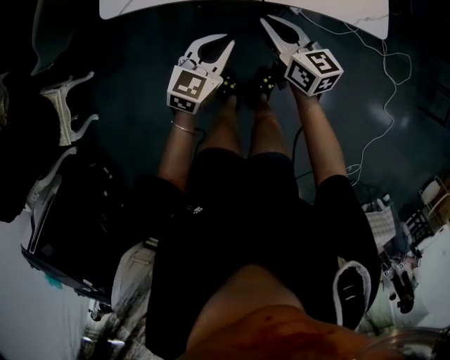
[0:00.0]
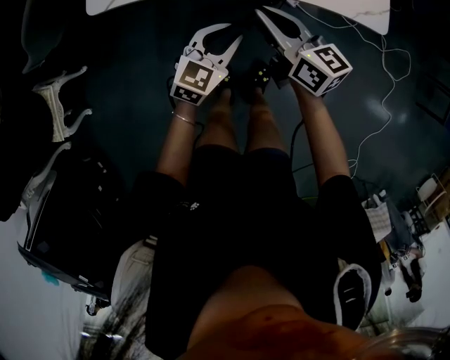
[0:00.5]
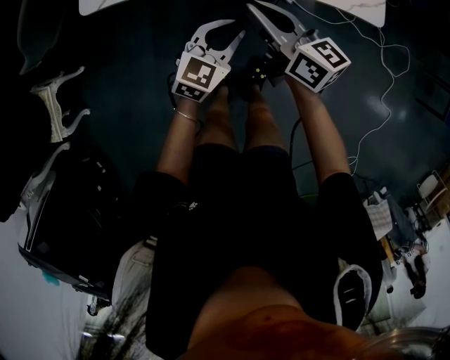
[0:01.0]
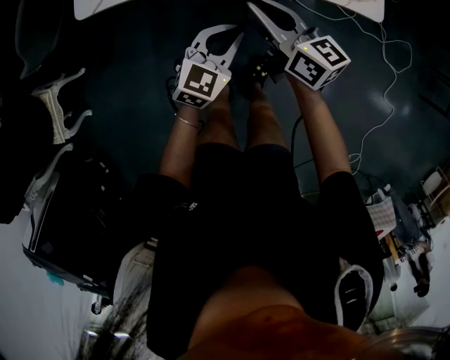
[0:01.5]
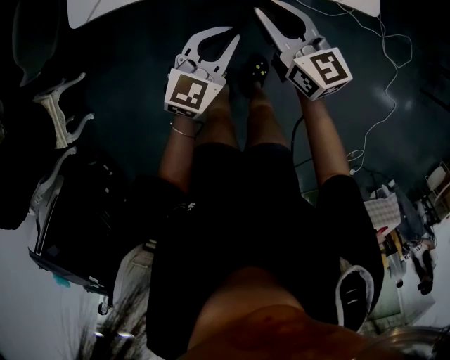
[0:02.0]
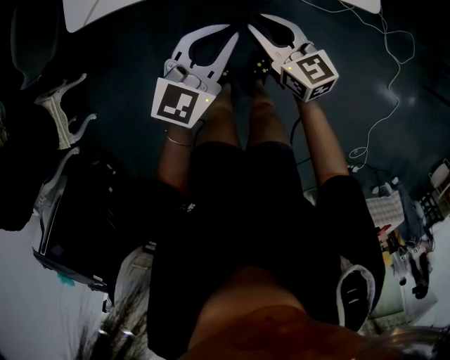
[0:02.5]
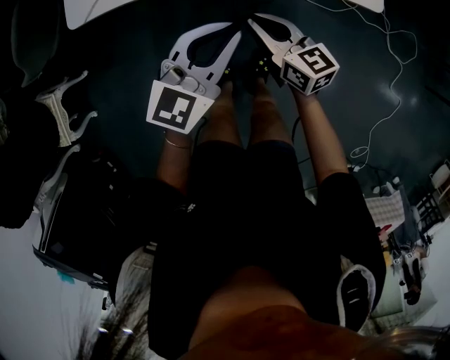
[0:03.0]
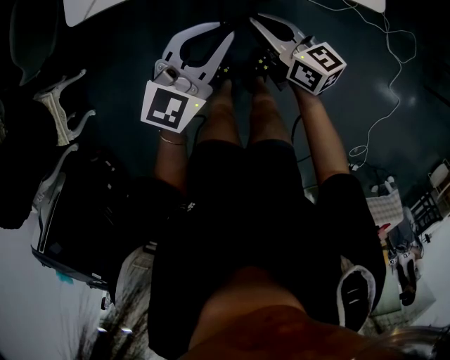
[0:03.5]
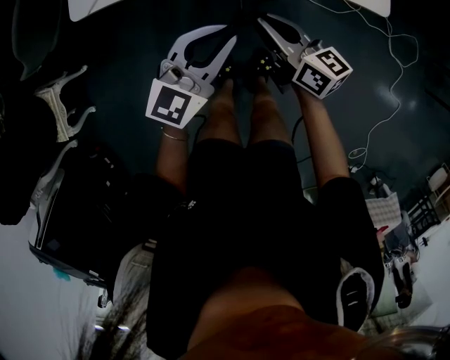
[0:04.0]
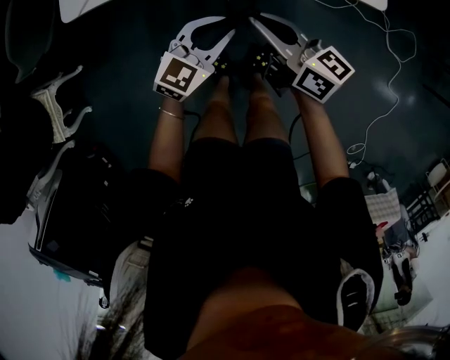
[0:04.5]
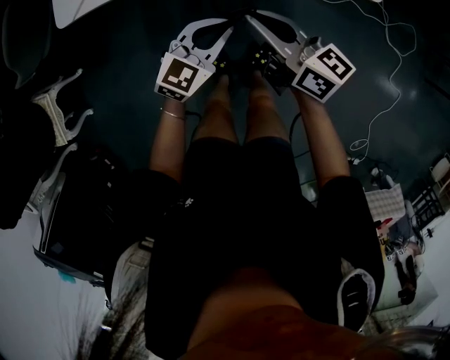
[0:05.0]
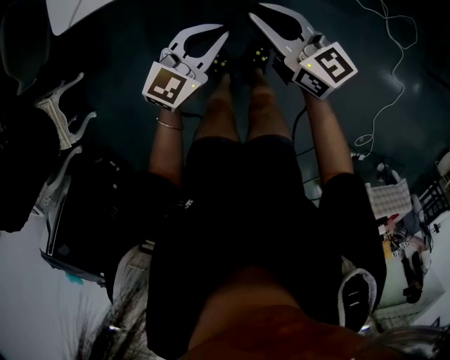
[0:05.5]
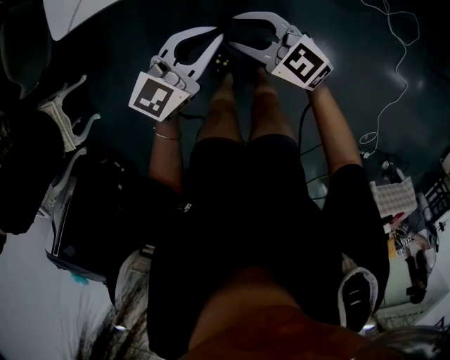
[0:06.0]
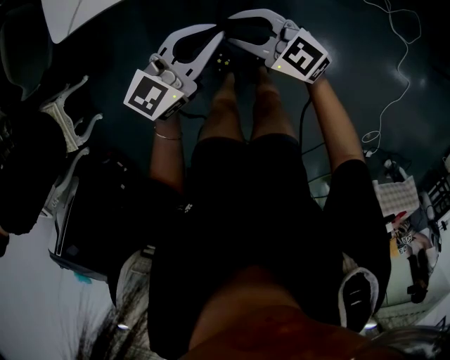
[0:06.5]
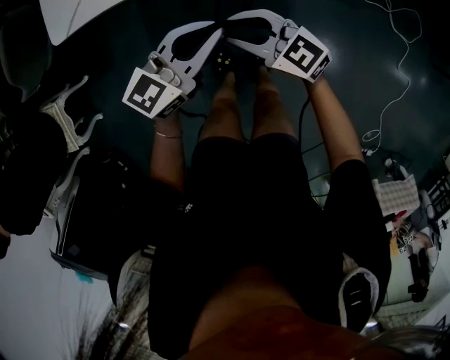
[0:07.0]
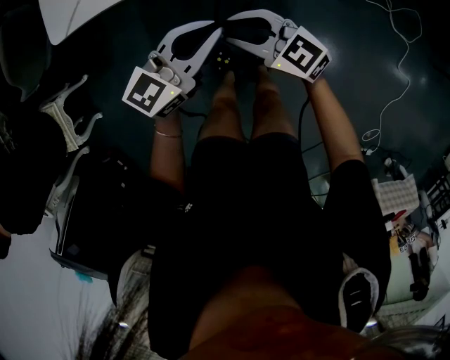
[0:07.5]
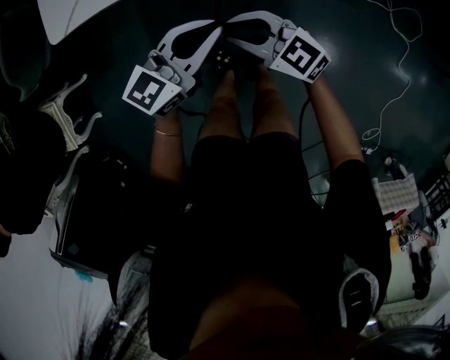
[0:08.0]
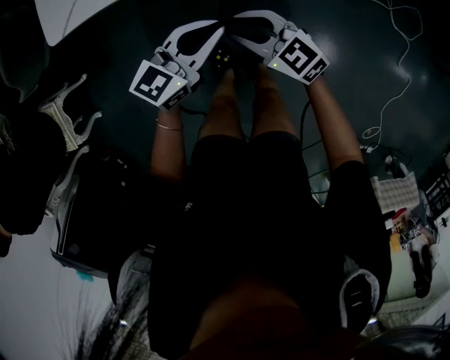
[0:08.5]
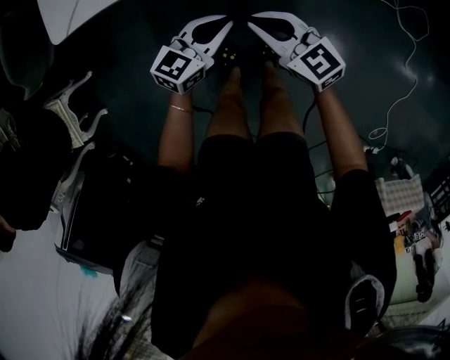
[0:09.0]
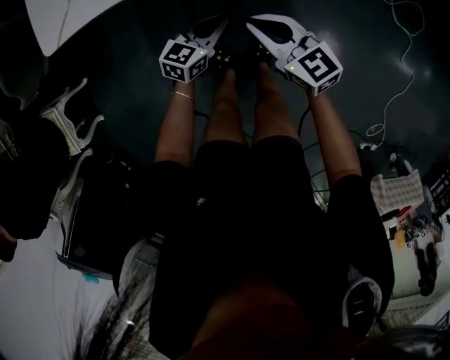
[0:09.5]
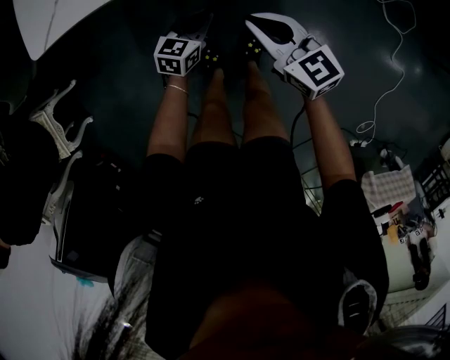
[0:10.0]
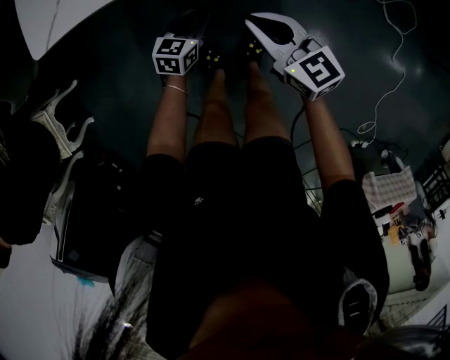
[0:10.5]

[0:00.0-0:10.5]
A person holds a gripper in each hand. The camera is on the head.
0:00.0 to 0:02.0: The left gripper shifts approximately 5 cm to the right; the right gripper changes place by approximately 5 cm.
0:02.0 to 0:04.0: The right gripper moves approximately 5 cm, and swivels approximately 20 degrees. The left gripper changes place by about 5 cm.
0:04.0 to 0:06.5: The right gripper travels backward by approximately 5 cm, turns by roughly 40 degrees, and opens its fingers, while the left gripper moves some 10 cm downward and comes back, and swivels approximately 20 degrees.
0:06.5 to 0:08.5: There are only small adjustments of the grippers.
0:08.5 to 0:10.5: The right gripper heads to the right, covering approximately 5 cm, and swivels approximately 30 degrees. Meanwhile the left gripper moves downward, roughly 20 cm, and swivels some 30 degrees.

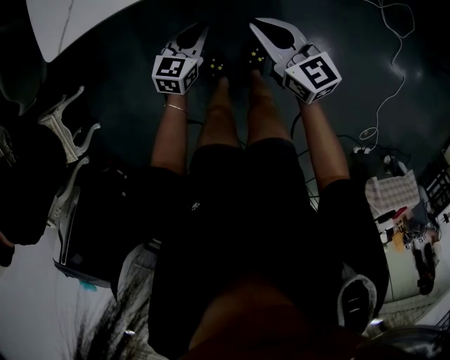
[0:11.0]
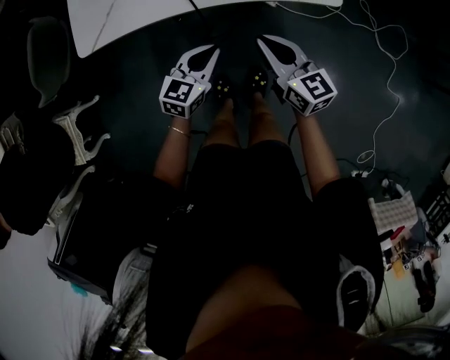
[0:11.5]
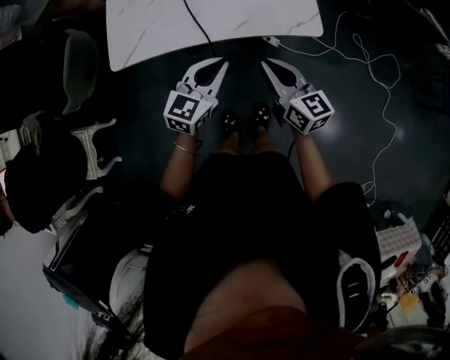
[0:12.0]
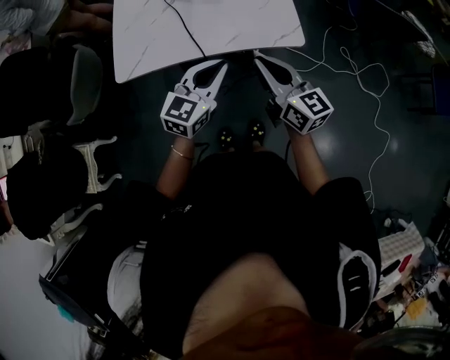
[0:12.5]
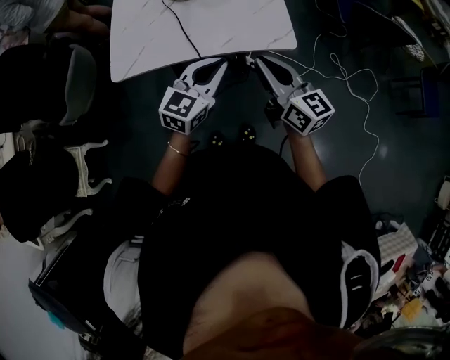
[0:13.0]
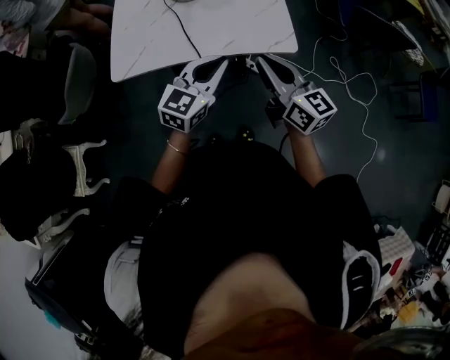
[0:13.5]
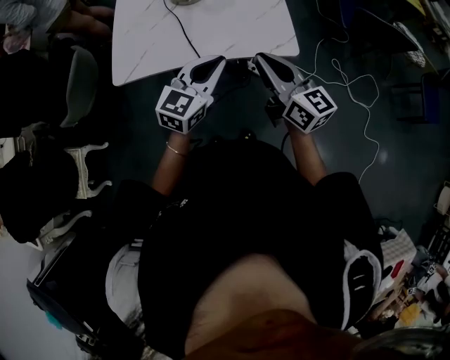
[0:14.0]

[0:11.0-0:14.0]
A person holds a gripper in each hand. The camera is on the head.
0:11.0 to 0:12.5: Both grippers travel together upward, roughly 30 cm. The left gripper rotates about 20 degrees.
0:12.5 to 0:14.0: The grippers make only small movements.

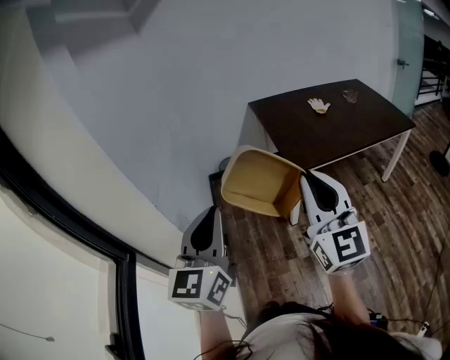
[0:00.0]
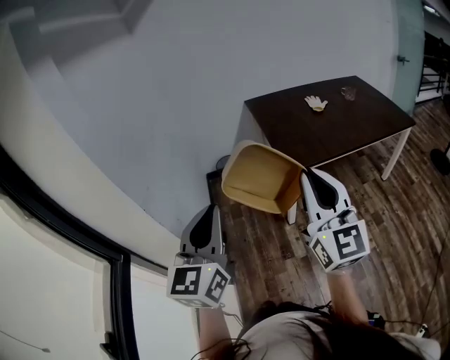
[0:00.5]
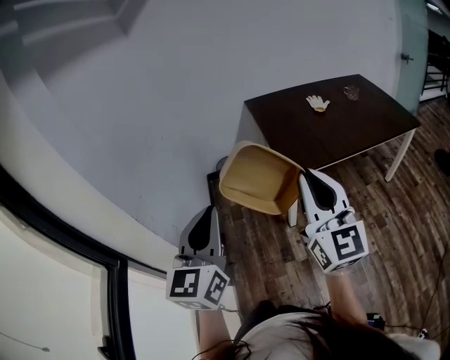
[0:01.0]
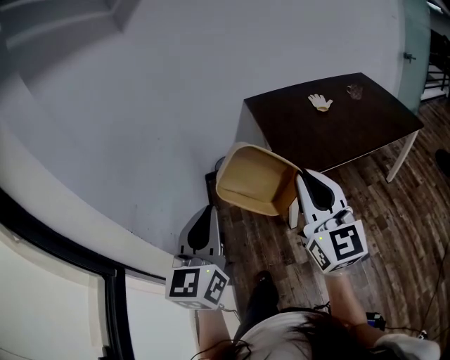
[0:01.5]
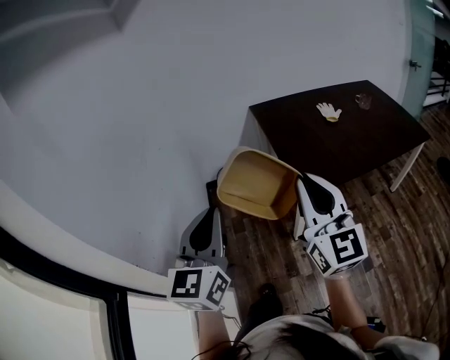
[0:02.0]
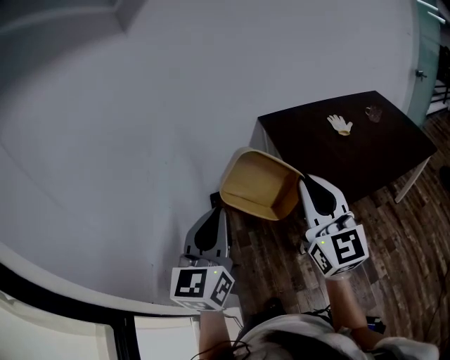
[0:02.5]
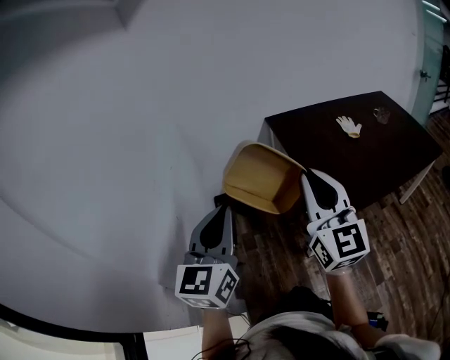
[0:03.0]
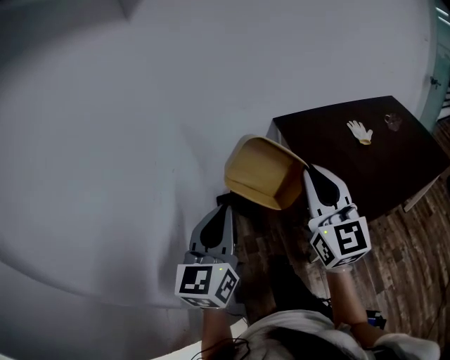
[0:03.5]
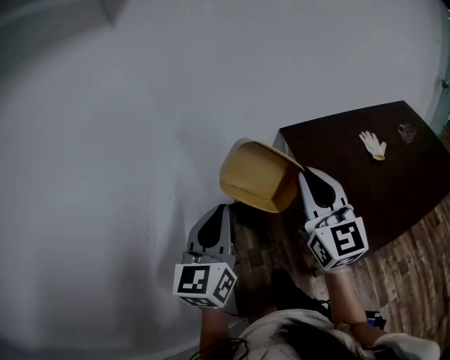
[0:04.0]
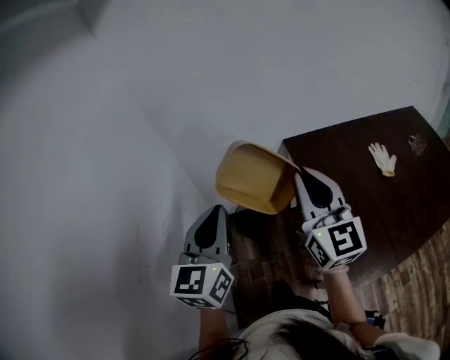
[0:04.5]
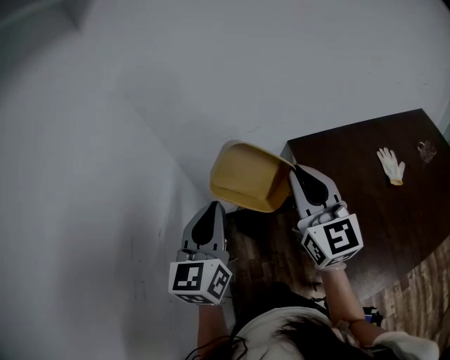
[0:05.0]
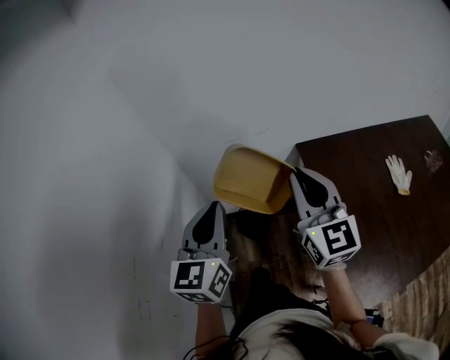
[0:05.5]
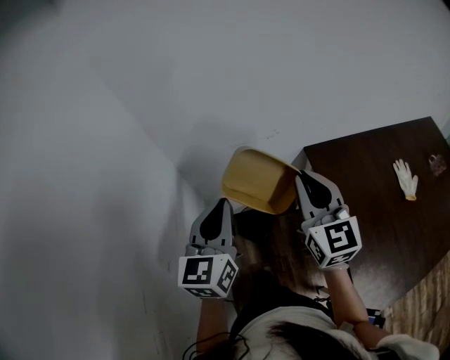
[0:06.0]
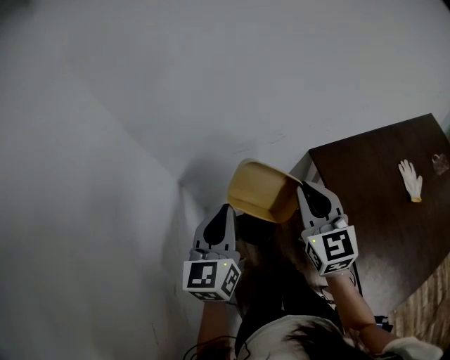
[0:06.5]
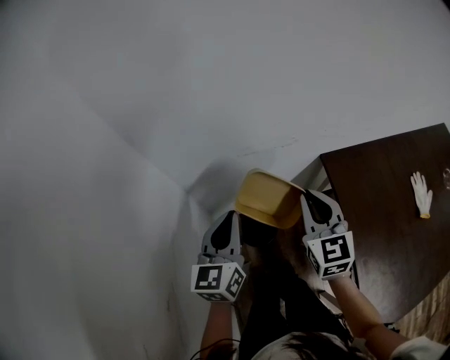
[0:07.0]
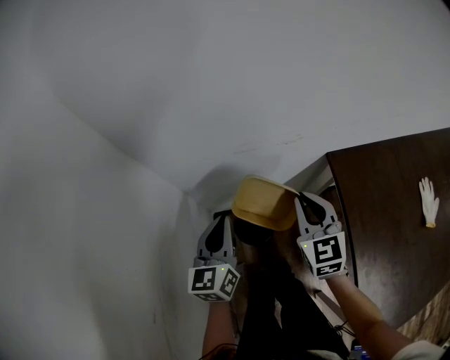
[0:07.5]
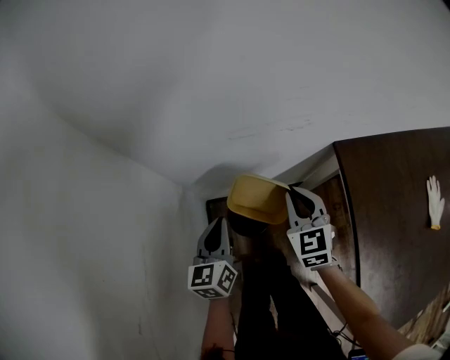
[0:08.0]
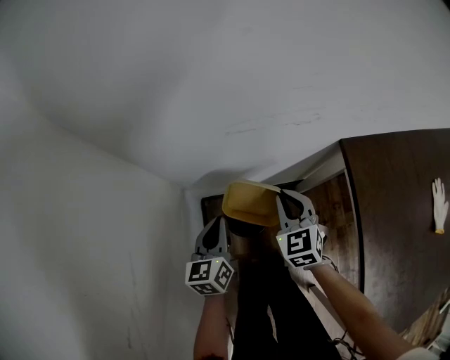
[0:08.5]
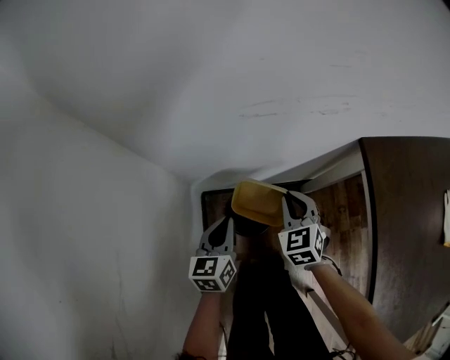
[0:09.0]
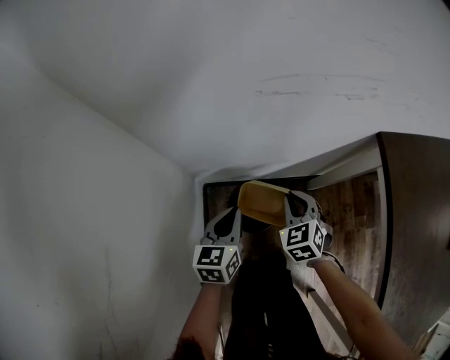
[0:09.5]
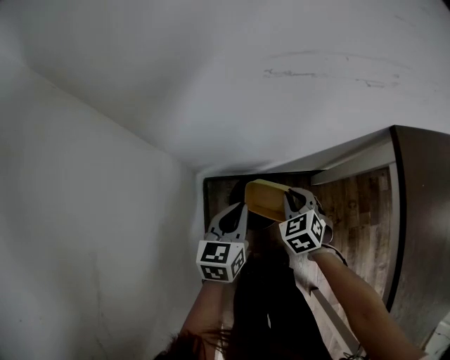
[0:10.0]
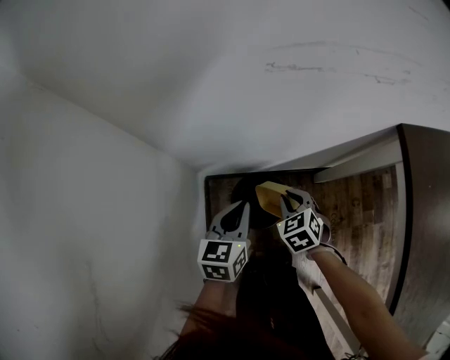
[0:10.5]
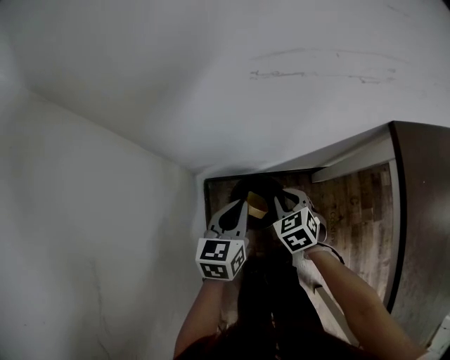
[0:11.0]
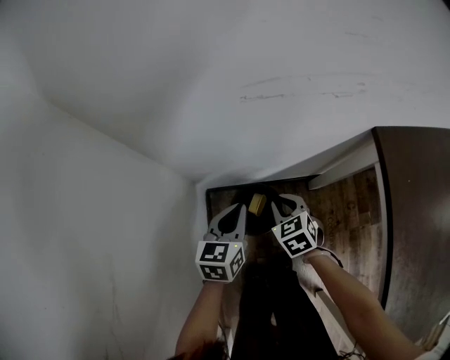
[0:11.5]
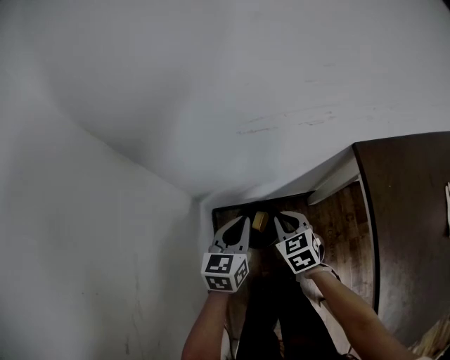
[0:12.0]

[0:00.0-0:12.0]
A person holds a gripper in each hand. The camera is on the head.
0:00.0 to 0:02.0: The two grippers go approximately 20 cm forward.
0:02.0 to 0:04.0: The pair of grippers is taken forward, roughly 40 cm.
0:04.0 to 0:06.0: Both grippers travel together forward, roughly 40 cm.
0:06.0 to 0:08.0: Both grippers move downward and forward, approximately 35 cm. The right gripper turns by roughly 30 degrees, while the left gripper turns by some 20 degrees.
0:08.0 to 0:10.0: Both grippers move downward, about 25 cm. The right gripper rotates roughly 30 degrees.
0:10.0 to 0:12.0: The two grippers go approximately 10 cm upward.

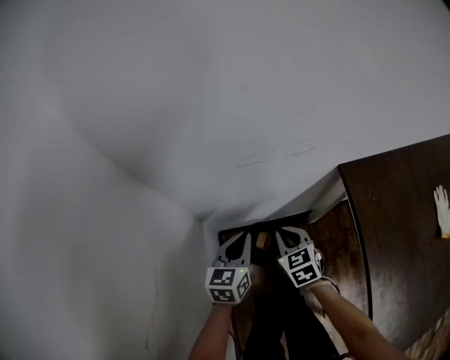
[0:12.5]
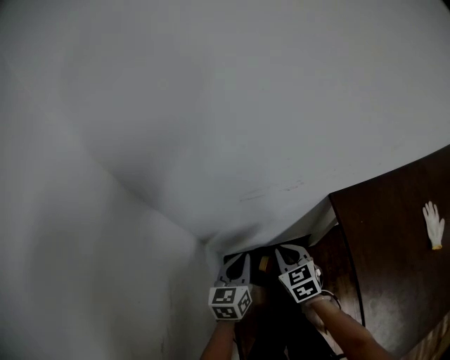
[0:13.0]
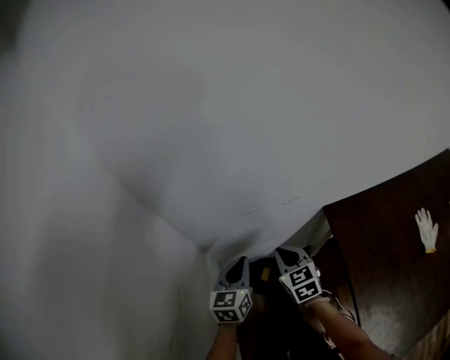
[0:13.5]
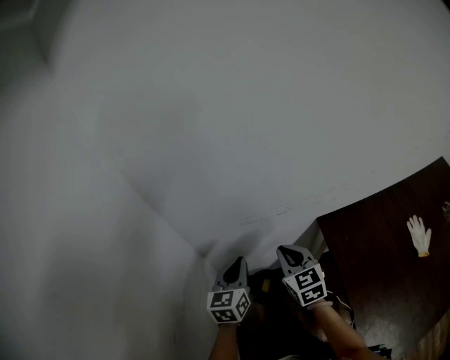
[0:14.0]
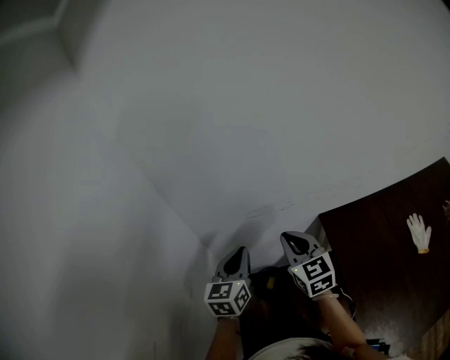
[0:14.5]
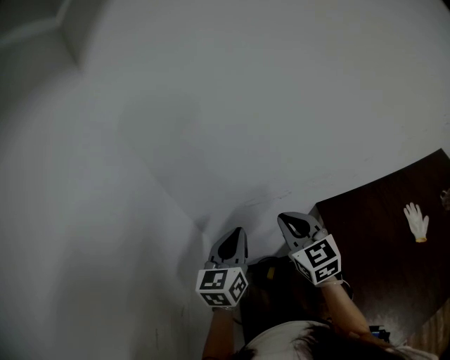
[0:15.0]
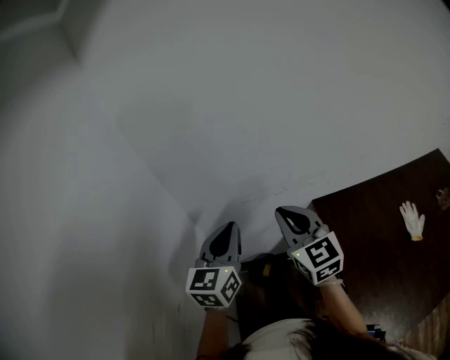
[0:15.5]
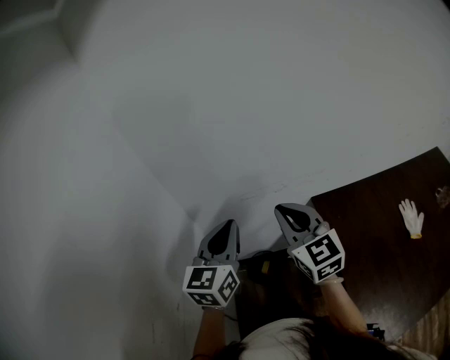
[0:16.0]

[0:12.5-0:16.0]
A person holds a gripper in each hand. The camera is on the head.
0:12.5 to 0:14.5: The grippers both shift upward by approximately 30 cm. The right gripper swivels approximately 30 degrees.
0:14.5 to 0:16.0: The grippers both shift upward by some 10 cm.
